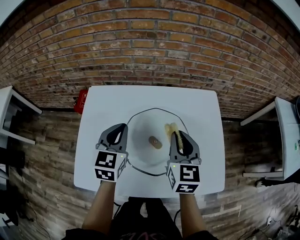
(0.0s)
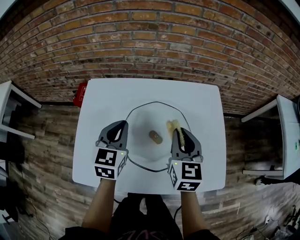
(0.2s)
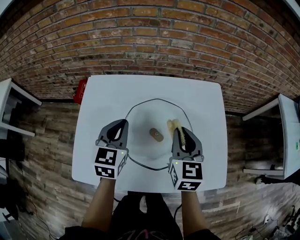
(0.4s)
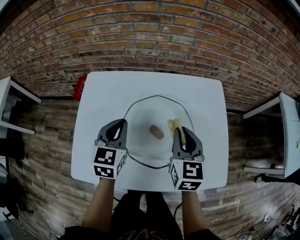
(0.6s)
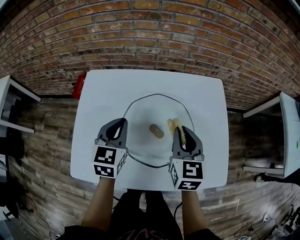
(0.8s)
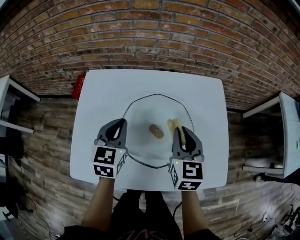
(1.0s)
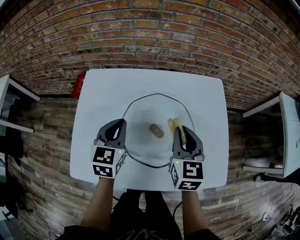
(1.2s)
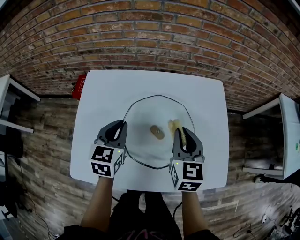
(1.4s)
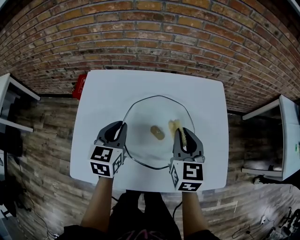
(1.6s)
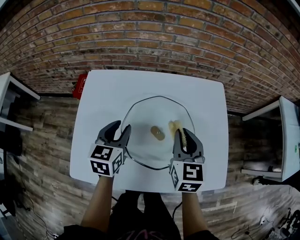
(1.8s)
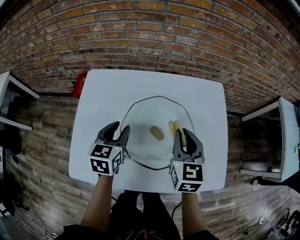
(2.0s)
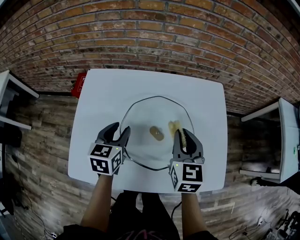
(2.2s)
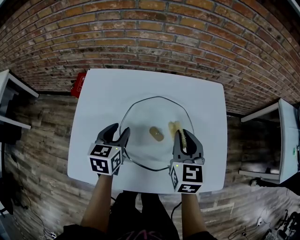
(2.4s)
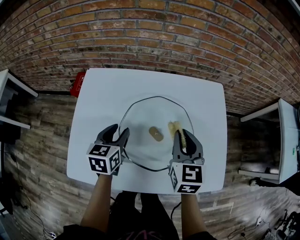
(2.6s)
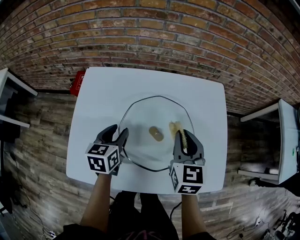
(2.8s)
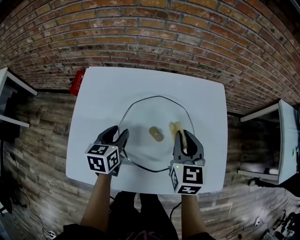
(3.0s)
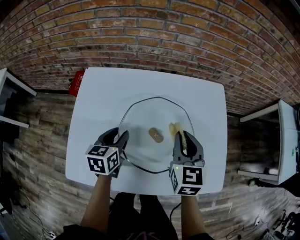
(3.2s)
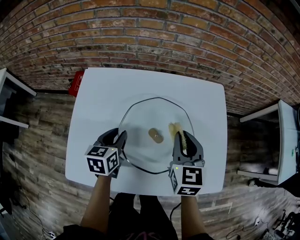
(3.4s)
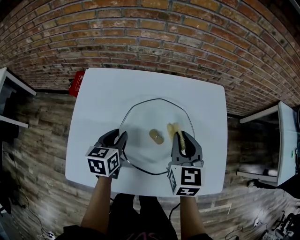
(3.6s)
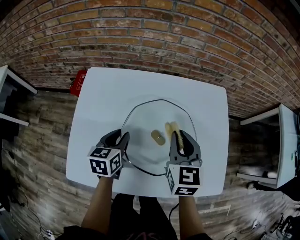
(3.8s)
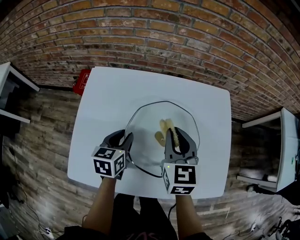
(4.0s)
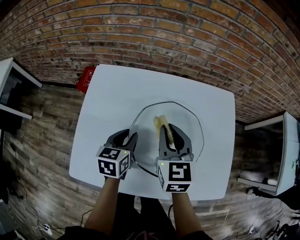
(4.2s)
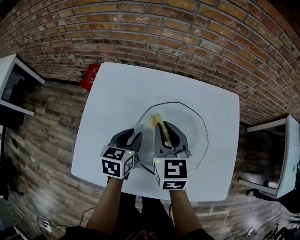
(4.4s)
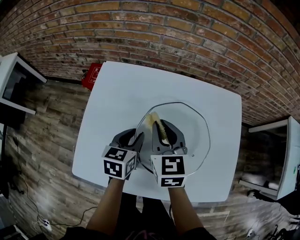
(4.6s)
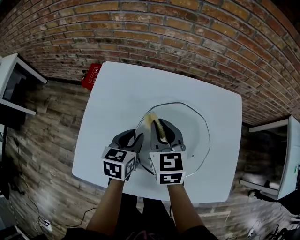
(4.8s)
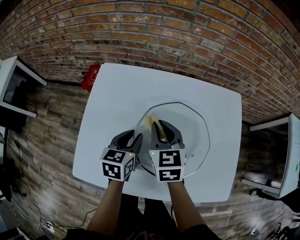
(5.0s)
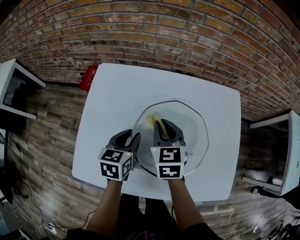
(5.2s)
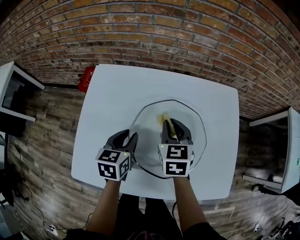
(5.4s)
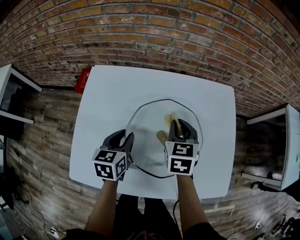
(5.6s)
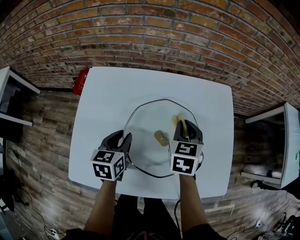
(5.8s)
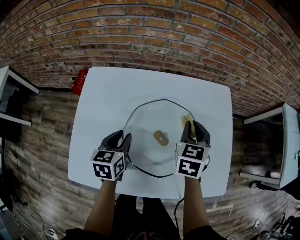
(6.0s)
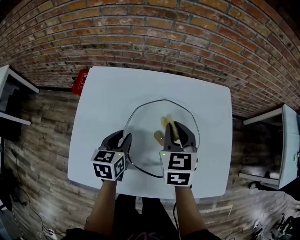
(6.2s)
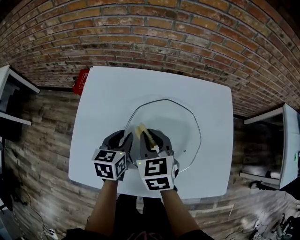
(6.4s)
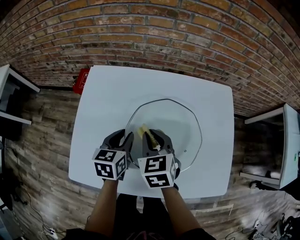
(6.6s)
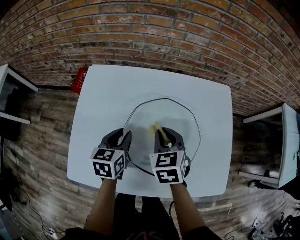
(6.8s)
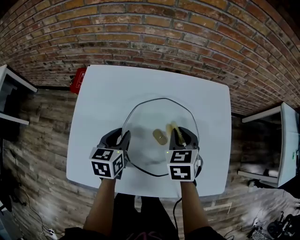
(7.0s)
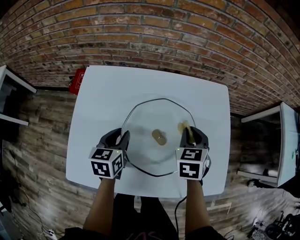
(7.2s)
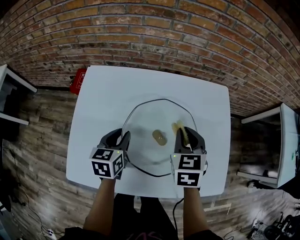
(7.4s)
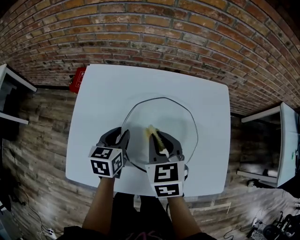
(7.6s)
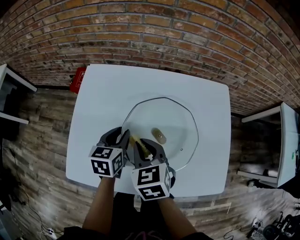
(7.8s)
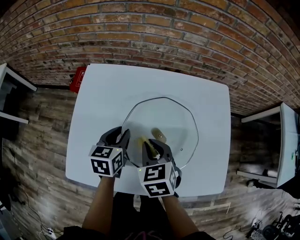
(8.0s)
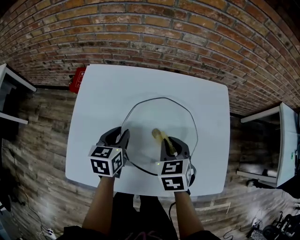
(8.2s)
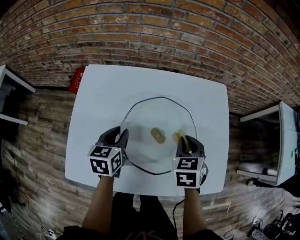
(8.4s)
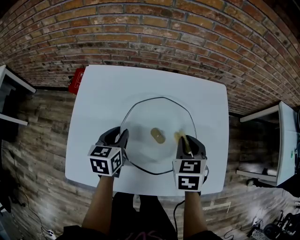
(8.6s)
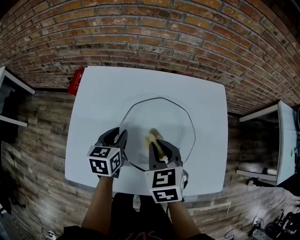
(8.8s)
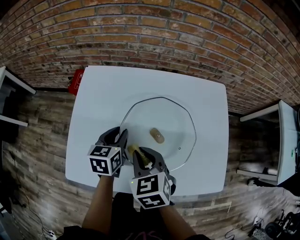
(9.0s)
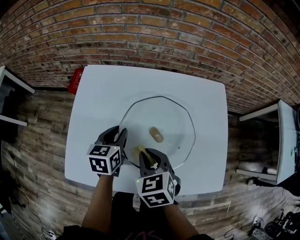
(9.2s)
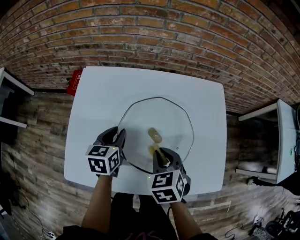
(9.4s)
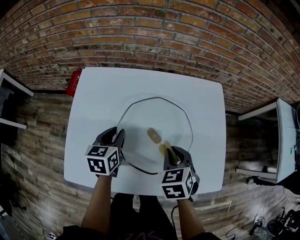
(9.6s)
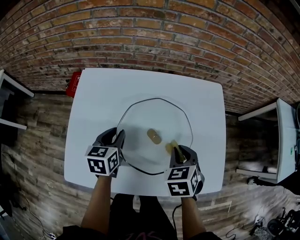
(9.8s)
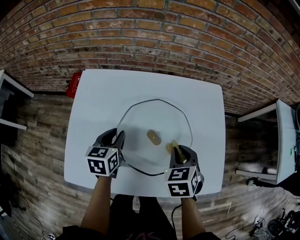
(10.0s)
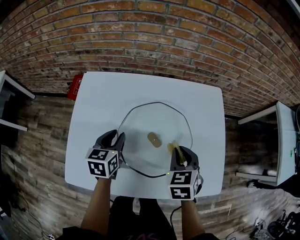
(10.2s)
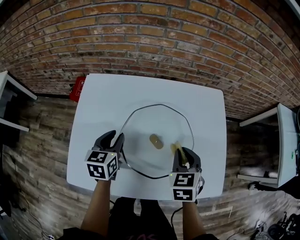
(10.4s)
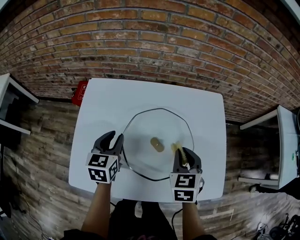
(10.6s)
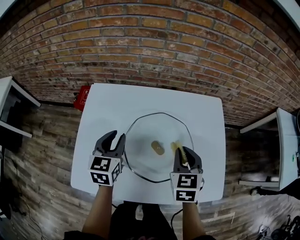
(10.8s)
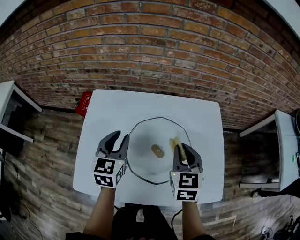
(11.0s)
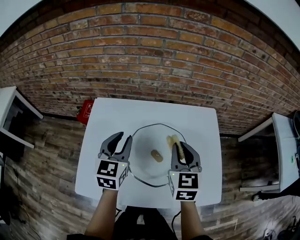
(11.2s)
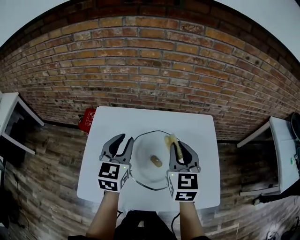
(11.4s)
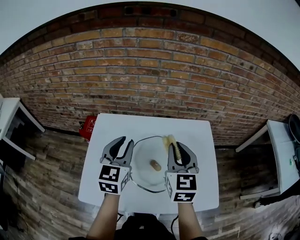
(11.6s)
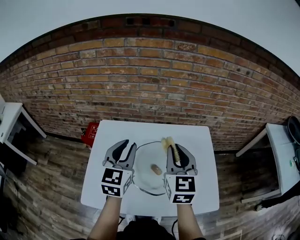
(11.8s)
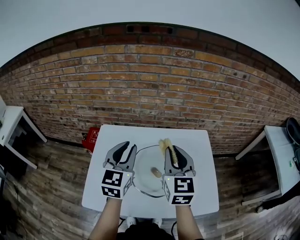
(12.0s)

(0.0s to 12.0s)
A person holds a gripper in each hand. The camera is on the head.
0.0s - 1.6s: The left gripper shifts roughly 5 cm downward.
1.6s - 3.0s: The left gripper goes roughly 5 cm downward, and opens its fingers.
3.0s - 4.4s: The right gripper travels to the left by approximately 15 cm.
4.4s - 6.0s: The right gripper shifts roughly 15 cm to the right, and rotates roughly 30 degrees.
6.0s - 7.6s: The right gripper goes left and right, approximately 15 cm each way, reversing 2 times, and swivels some 20 degrees.
7.6s - 9.0s: The right gripper goes left and right, roughly 15 cm each way, reversing 2 times.
9.0s - 10.4s: The right gripper shifts some 15 cm to the right, and changes its angle by some 20 degrees.
10.4s - 12.0s: Both grippers move upward, approximately 25 cm. The left gripper changes its angle by about 30 degrees; the right gripper angles its fingers upward, by some 40 degrees.

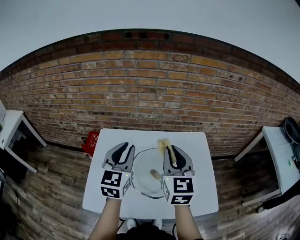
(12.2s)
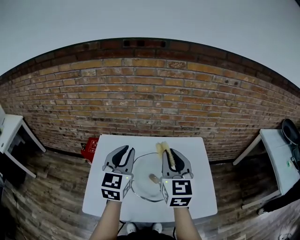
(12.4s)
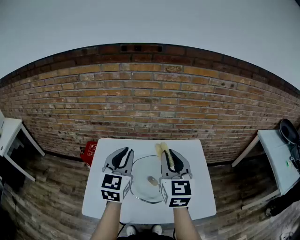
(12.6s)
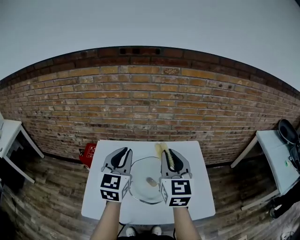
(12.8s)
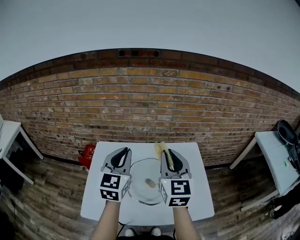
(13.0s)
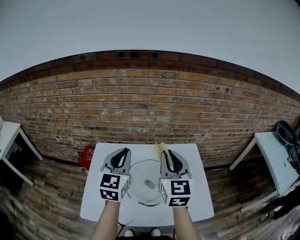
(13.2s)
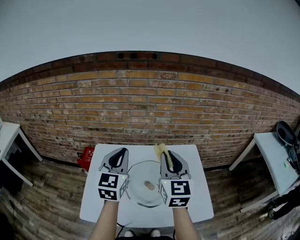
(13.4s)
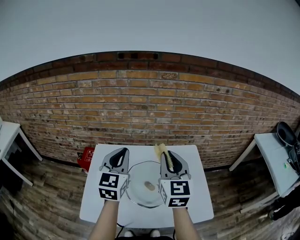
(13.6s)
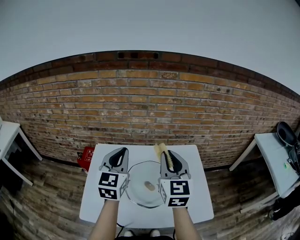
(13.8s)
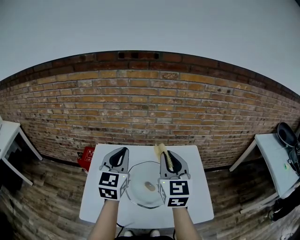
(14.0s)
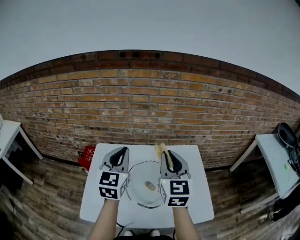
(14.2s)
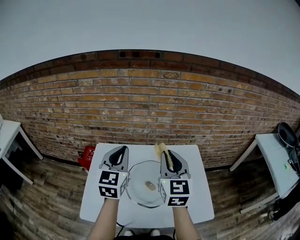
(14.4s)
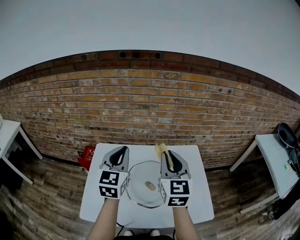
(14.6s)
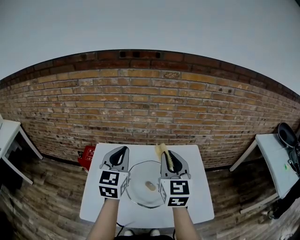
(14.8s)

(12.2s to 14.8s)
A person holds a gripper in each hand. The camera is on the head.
12.2s - 14.8s: The grippers make only small movements.

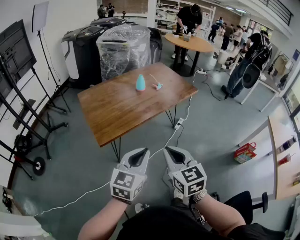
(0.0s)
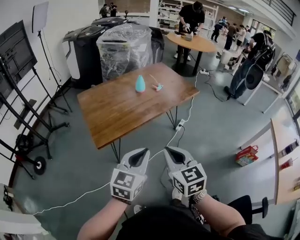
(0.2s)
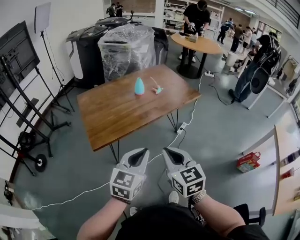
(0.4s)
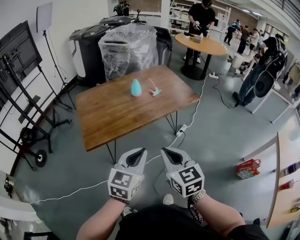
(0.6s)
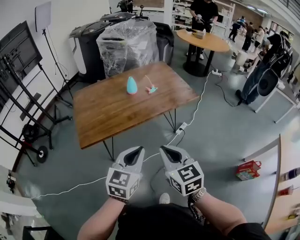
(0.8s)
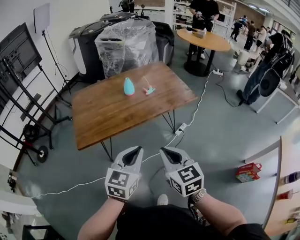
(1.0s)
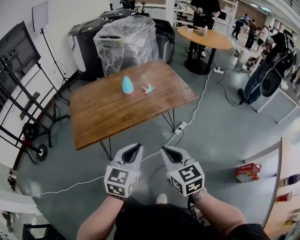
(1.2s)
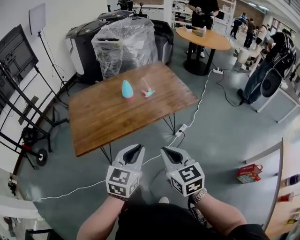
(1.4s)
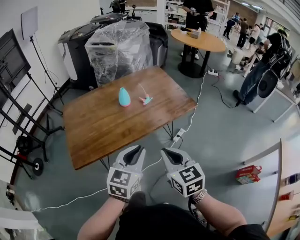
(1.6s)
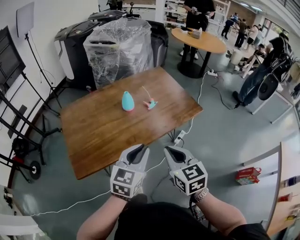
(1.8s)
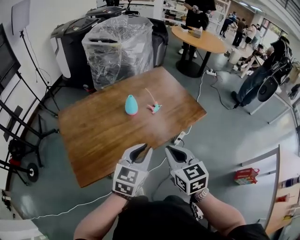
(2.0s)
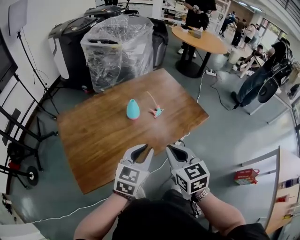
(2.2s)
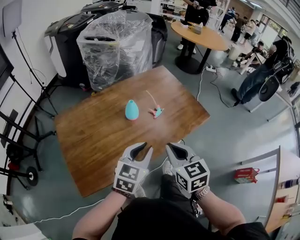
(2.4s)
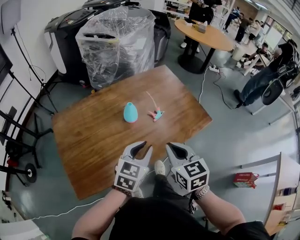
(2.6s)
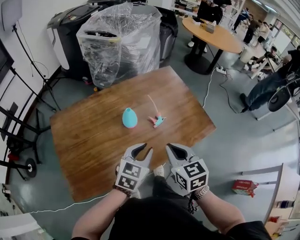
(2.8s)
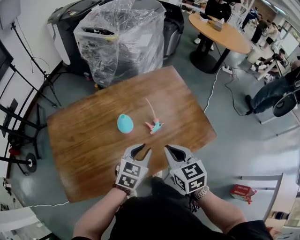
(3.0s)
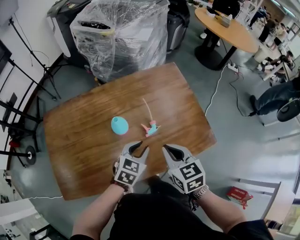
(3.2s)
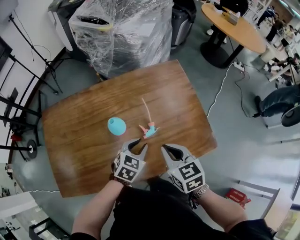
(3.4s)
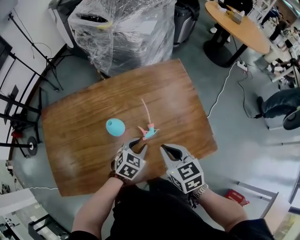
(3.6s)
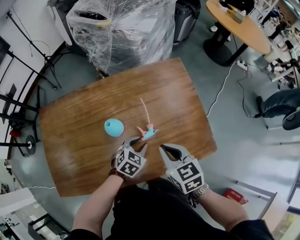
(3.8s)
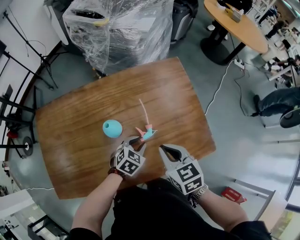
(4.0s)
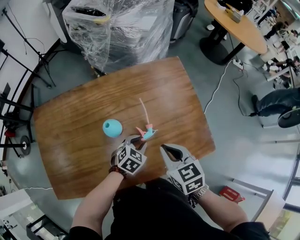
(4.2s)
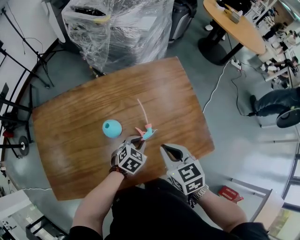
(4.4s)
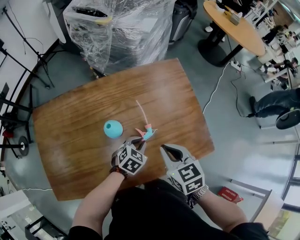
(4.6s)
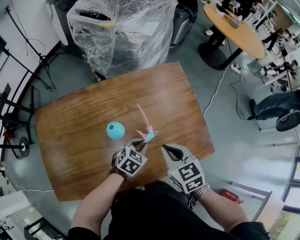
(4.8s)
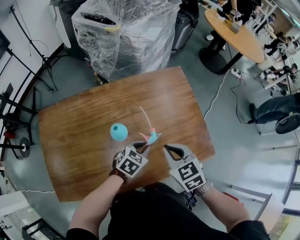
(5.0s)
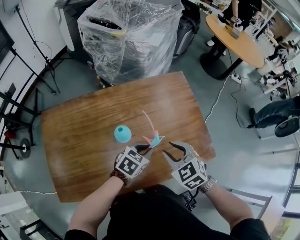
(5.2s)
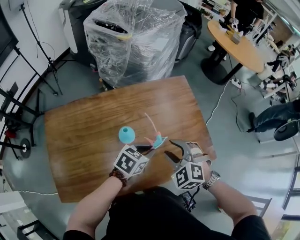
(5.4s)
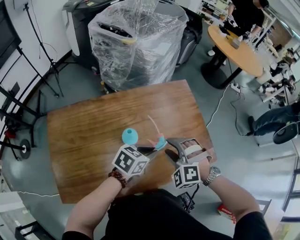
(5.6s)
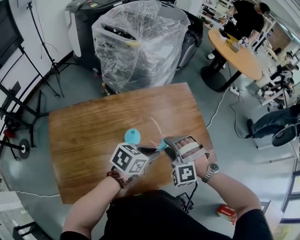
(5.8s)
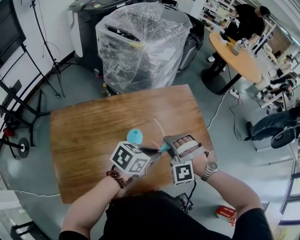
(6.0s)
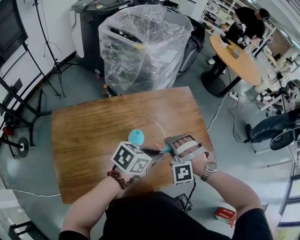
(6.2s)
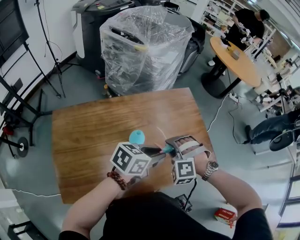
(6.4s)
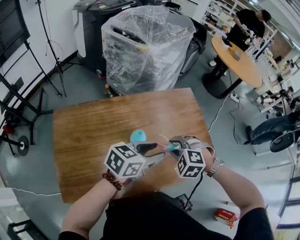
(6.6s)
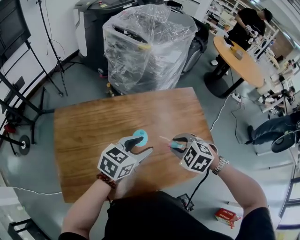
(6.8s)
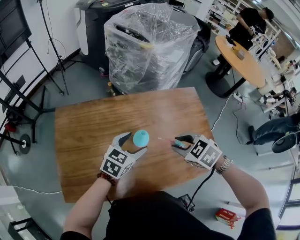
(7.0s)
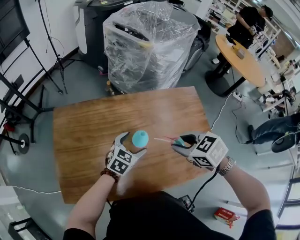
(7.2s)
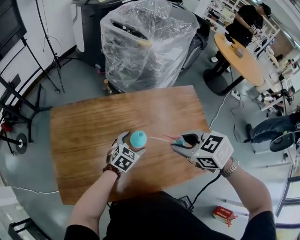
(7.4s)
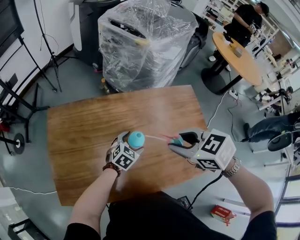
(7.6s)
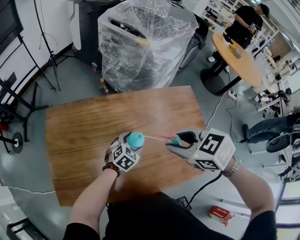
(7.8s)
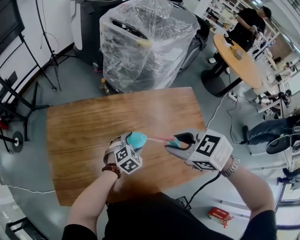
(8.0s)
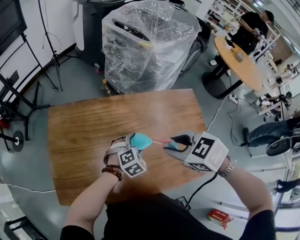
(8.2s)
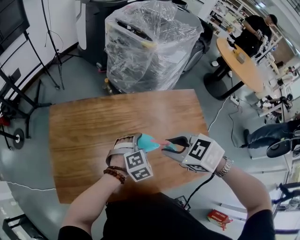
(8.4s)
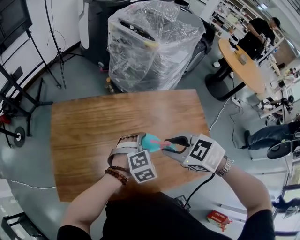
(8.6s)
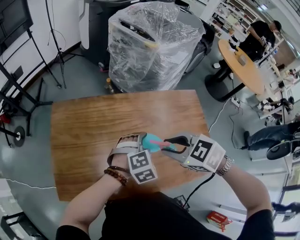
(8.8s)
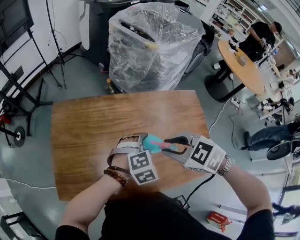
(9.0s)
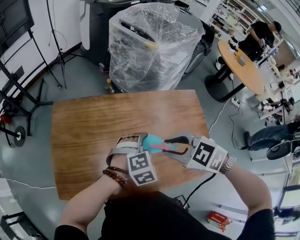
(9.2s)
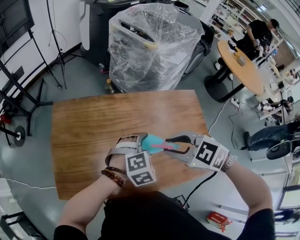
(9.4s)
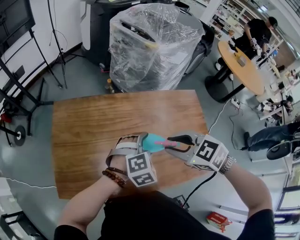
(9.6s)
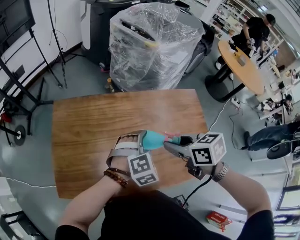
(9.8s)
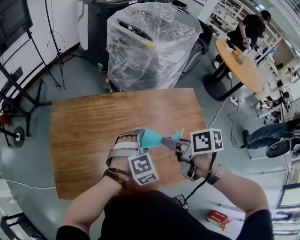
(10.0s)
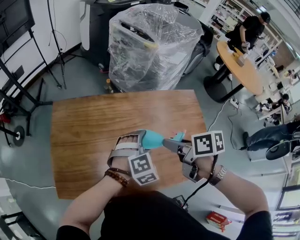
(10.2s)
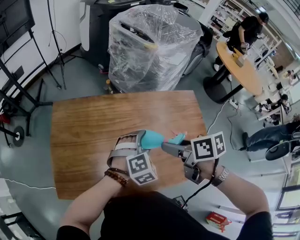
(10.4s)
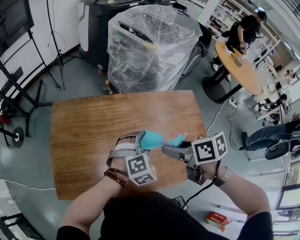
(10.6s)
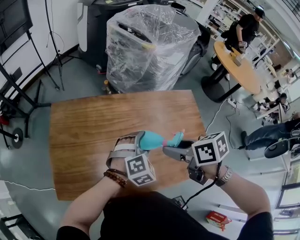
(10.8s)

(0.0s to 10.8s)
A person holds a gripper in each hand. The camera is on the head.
0.0s - 1.6s: Both grippers move forward and to the right, some 25 cm.
1.6s - 3.0s: The left gripper shifts approximately 30 cm forward and downward, while the right gripper shifts about 30 cm forward.
3.0s - 4.6s: The left gripper travels downward and forward by about 15 cm; the right gripper shifts roughly 5 cm forward.
4.6s - 6.2s: The right gripper heads to the left, covering some 10 cm, rotates around the line of its fingers by roughly 90 degrees, counterclockwise from behind, and opens up. The left gripper goes roughly 20 cm upward, and changes its angle by approximately 40 degrees.
6.2s - 7.8s: The left gripper moves downward, some 15 cm, changes its angle by about 40 degrees, and opens; the right gripper moves upward, approximately 10 cm, and rolls clockwise, seen from behind, by approximately 60 degrees.
7.8s - 9.2s: The left gripper heads upward, covering about 10 cm, and rotates some 30 degrees.
9.2s - 10.8s: The right gripper twists some 50 degrees clockwise, seen from behind.
